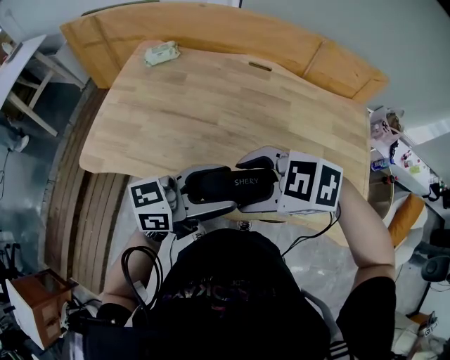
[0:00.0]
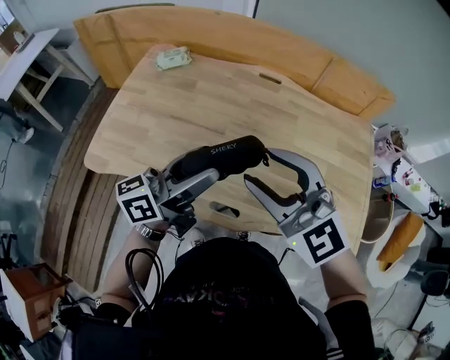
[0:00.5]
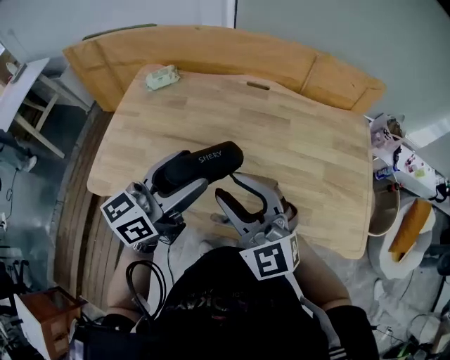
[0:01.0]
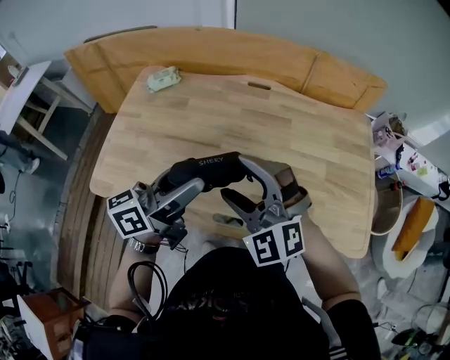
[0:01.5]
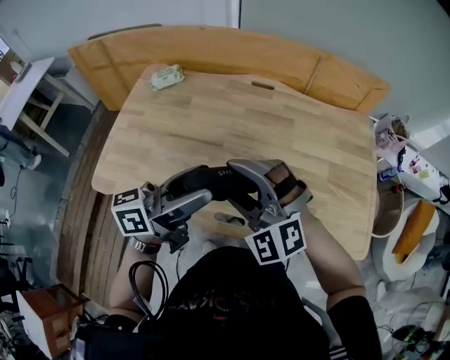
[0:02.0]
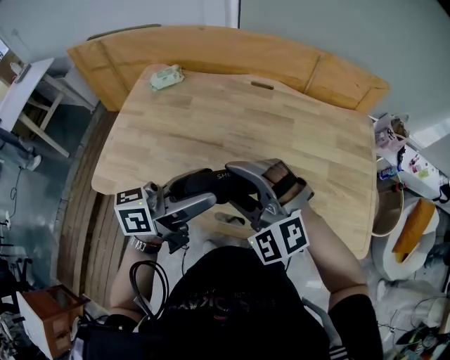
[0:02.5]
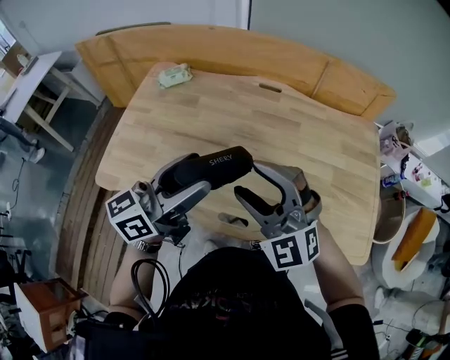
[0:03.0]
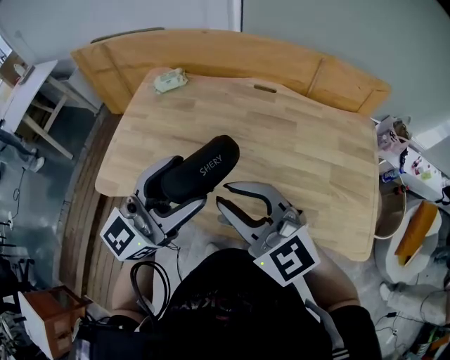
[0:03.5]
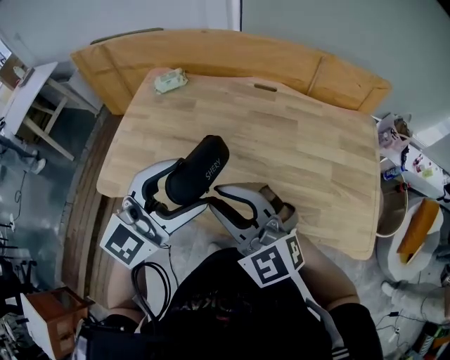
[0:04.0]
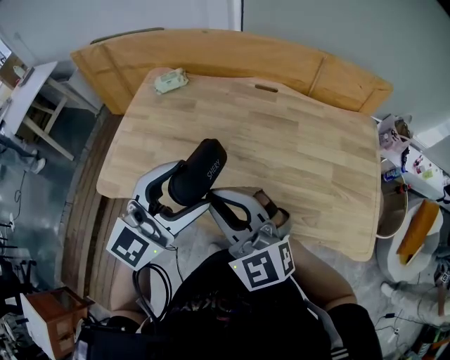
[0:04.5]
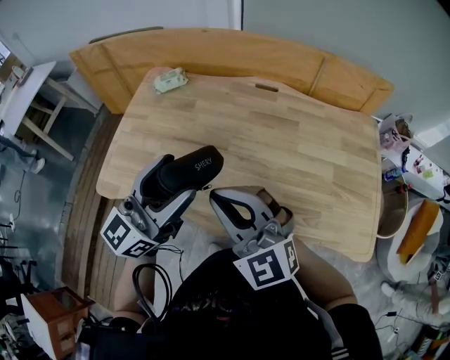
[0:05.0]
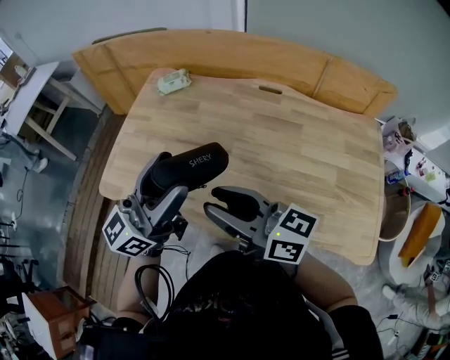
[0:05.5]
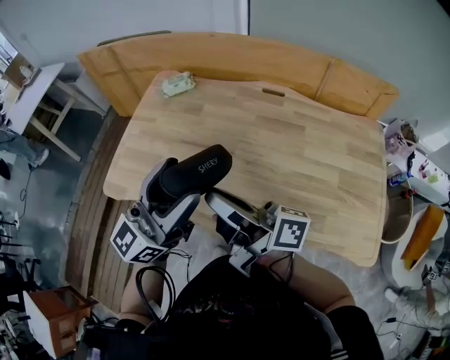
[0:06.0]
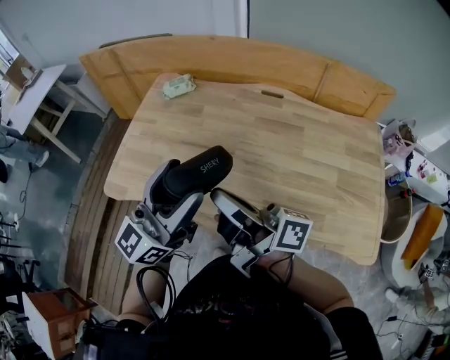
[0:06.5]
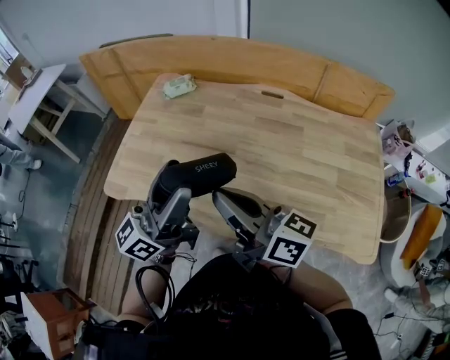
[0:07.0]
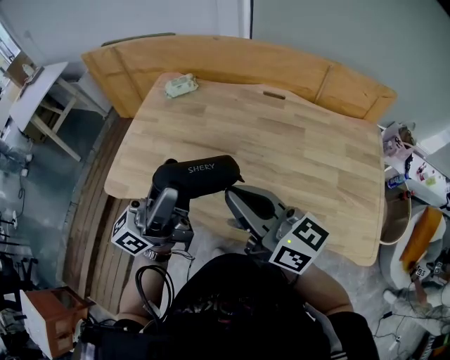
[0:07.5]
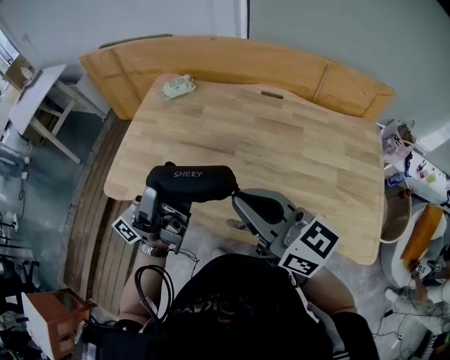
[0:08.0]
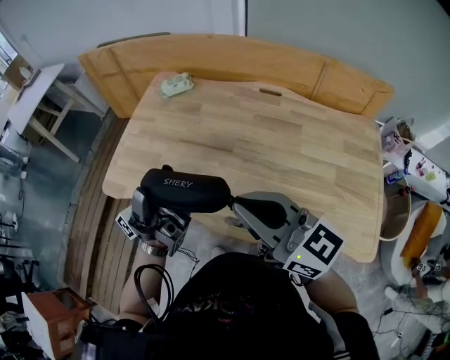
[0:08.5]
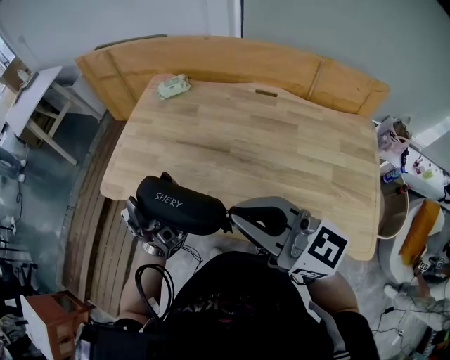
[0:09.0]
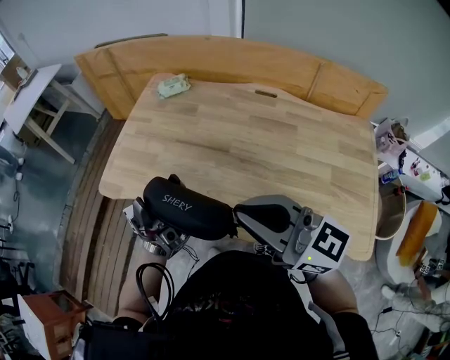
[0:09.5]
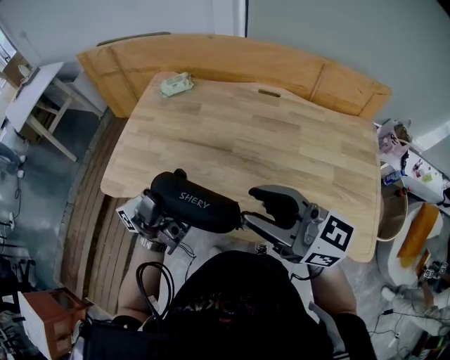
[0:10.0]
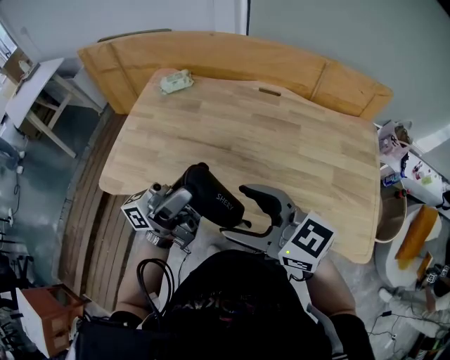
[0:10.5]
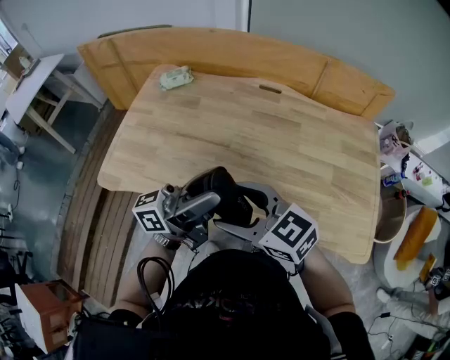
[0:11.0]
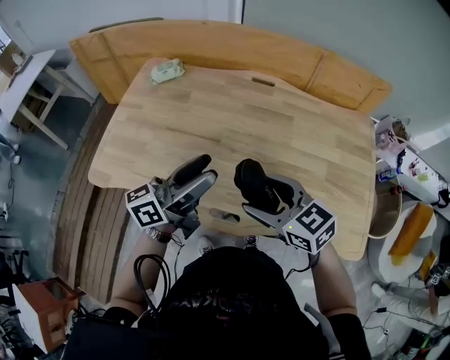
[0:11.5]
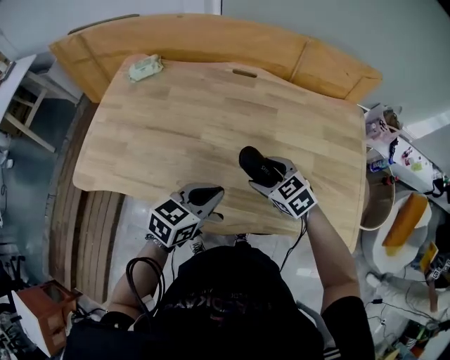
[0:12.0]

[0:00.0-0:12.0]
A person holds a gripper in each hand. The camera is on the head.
0:00.0 to 0:02.0: The right gripper travels upward and back again, some 10 cm each way, and changes its angle by about 60 degrees; the left gripper shifts by roughly 10 cm.
0:02.0 to 0:04.0: The right gripper moves roughly 5 cm, swivels approximately 30 degrees, and closes up, while the left gripper moves some 5 cm, and rolls clockwise, seen from behind, by some 60 degrees.
0:04.0 to 0:06.0: The left gripper turns by approximately 40 degrees; the right gripper twists roughly 100 degrees clockwise, seen from behind.
0:06.0 to 0:08.0: The left gripper is displaced to the left by roughly 5 cm, and rotates around the line of its fingers by roughly 50 degrees, counterclockwise from behind. Meanwhile the right gripper shifts by roughly 5 cm, and rotates around the line of its fingers by some 50 degrees, counterclockwise from behind.
0:08.0 to 0:10.0: The left gripper rotates about 20 degrees.
0:10.0 to 0:12.0: The right gripper moves downward, to the right and forward, about 30 cm, tips its fingers downward by some 50 degrees, and opens its fingers. The left gripper travels downward and to the right by roughly 30 cm, tilts its fingers some 80 degrees downward, and closes up.

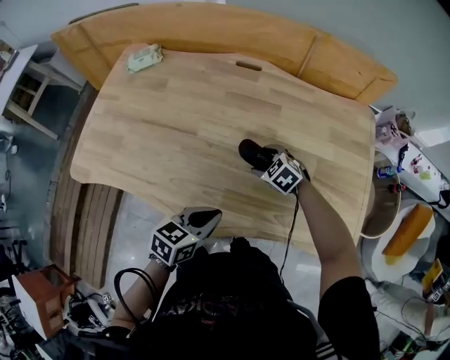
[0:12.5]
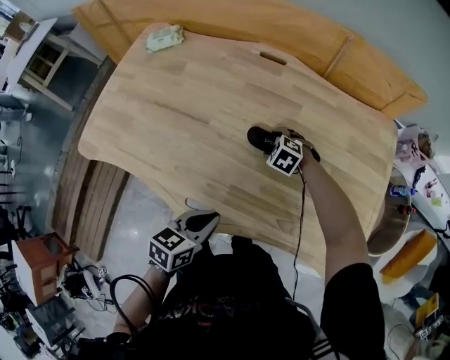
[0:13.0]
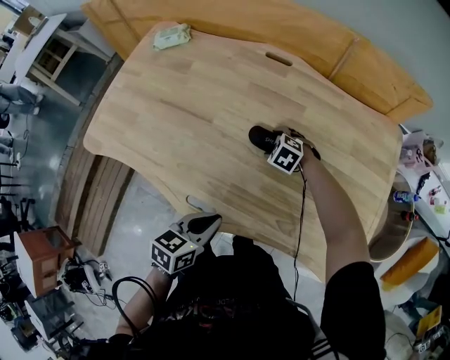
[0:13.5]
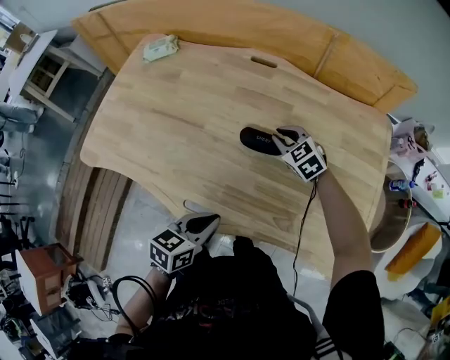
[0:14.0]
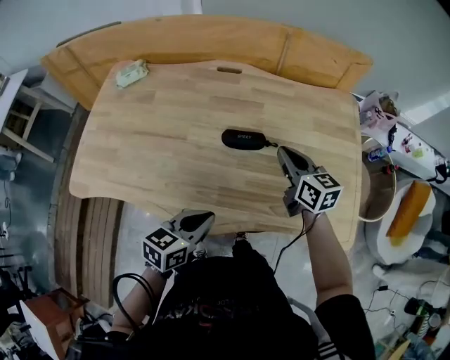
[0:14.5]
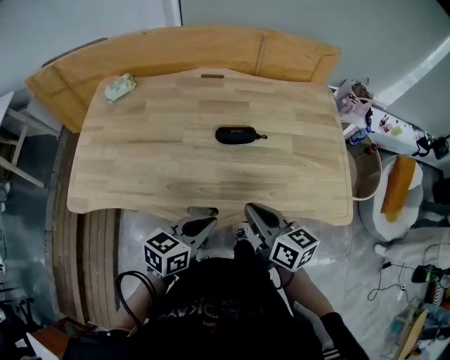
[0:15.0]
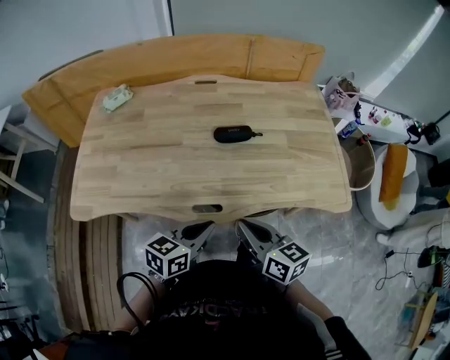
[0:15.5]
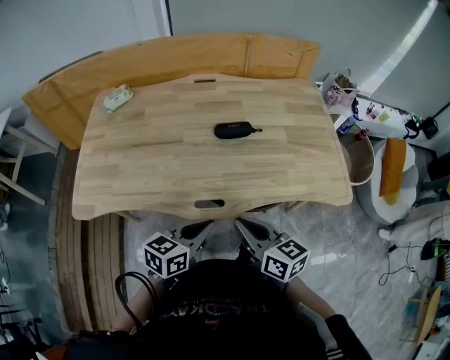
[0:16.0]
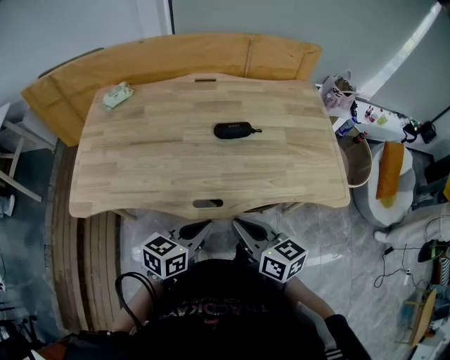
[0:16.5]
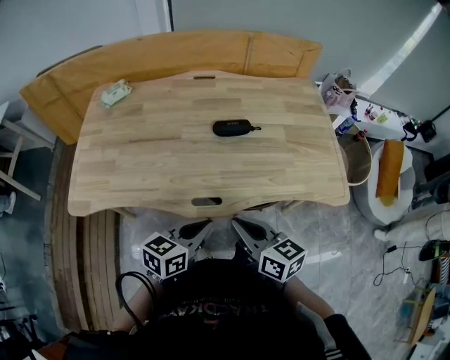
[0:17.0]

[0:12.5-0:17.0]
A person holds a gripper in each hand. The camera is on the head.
0:12.5 to 0:14.5: The right gripper moves upward and to the right, about 20 cm, points its fingers some 40 degrees further upward, and closes up.
0:14.5 to 0:17.0: The right gripper heads backward, covering approximately 30 cm; the left gripper travels backward by some 10 cm.

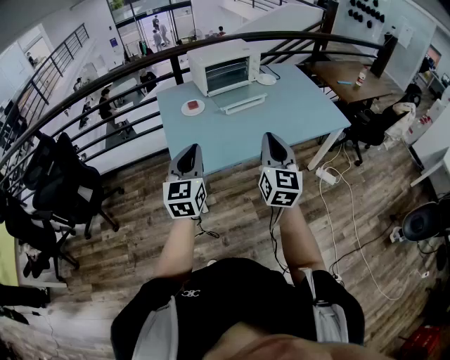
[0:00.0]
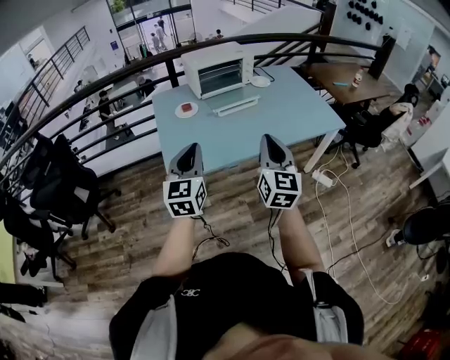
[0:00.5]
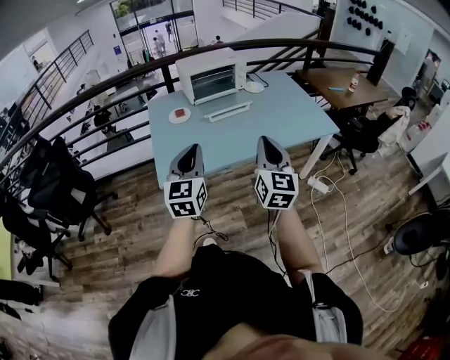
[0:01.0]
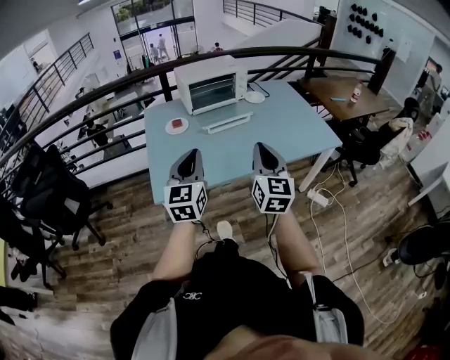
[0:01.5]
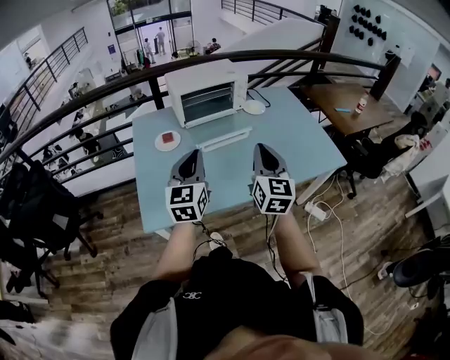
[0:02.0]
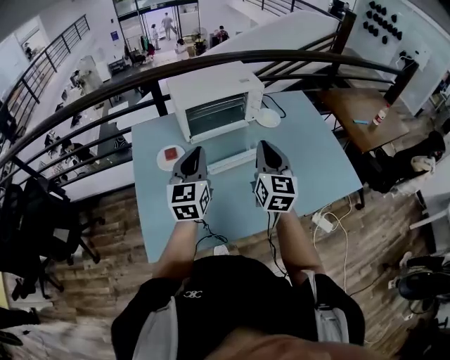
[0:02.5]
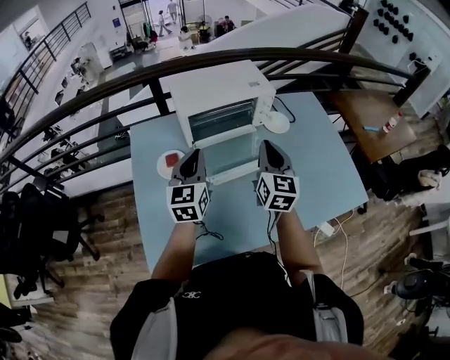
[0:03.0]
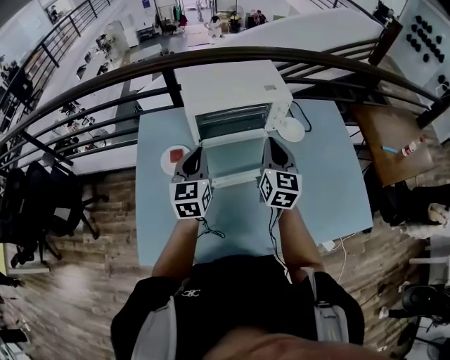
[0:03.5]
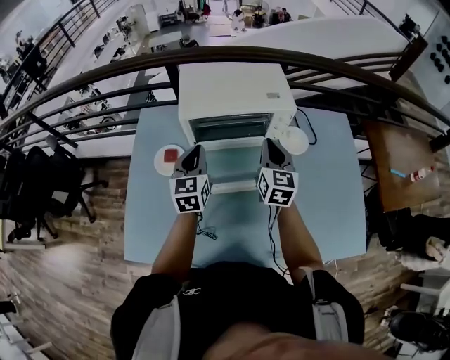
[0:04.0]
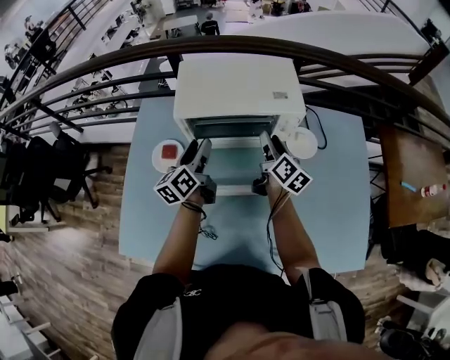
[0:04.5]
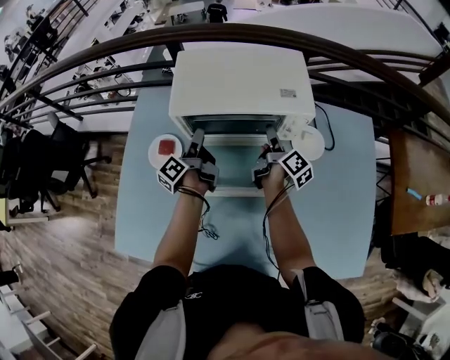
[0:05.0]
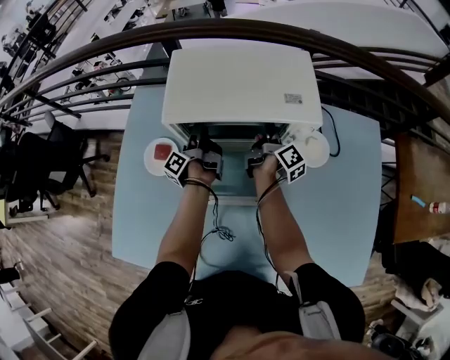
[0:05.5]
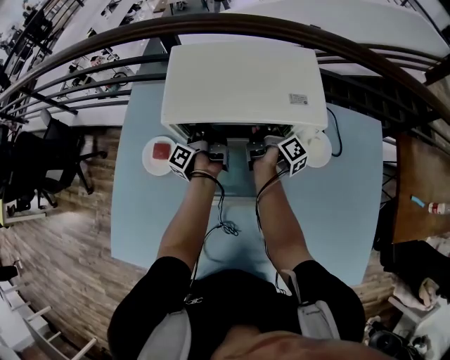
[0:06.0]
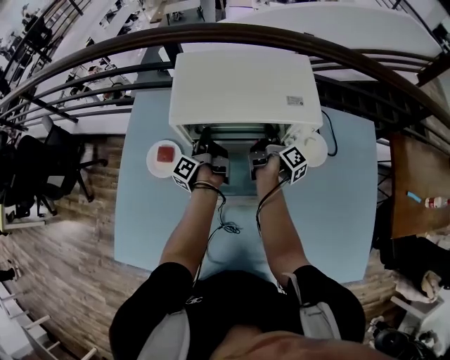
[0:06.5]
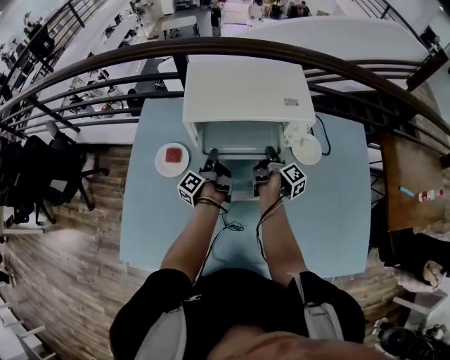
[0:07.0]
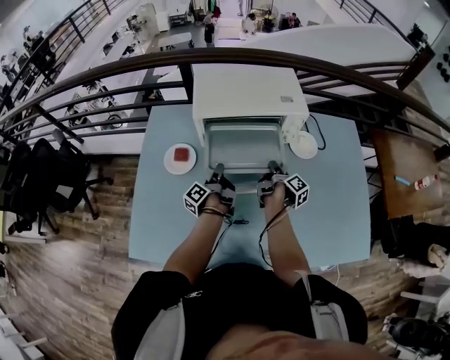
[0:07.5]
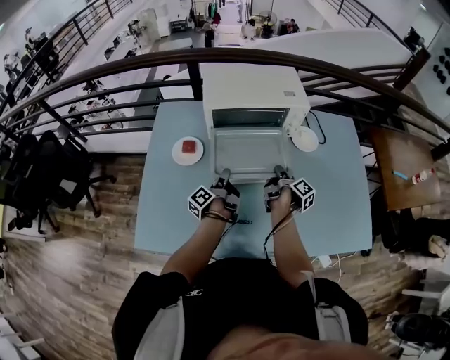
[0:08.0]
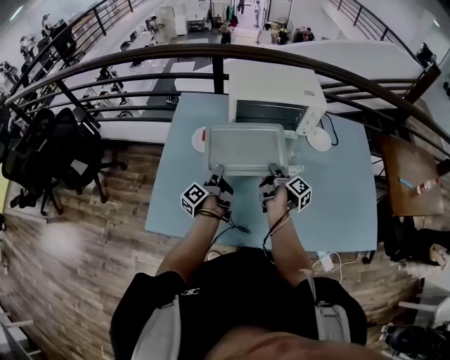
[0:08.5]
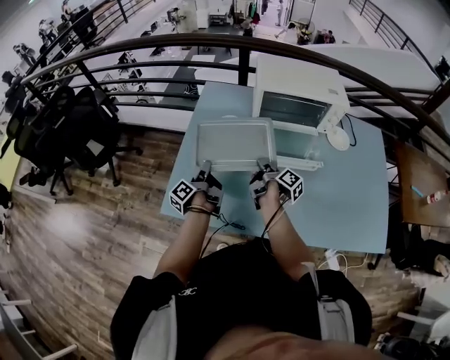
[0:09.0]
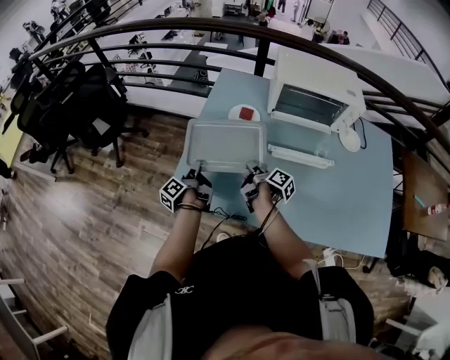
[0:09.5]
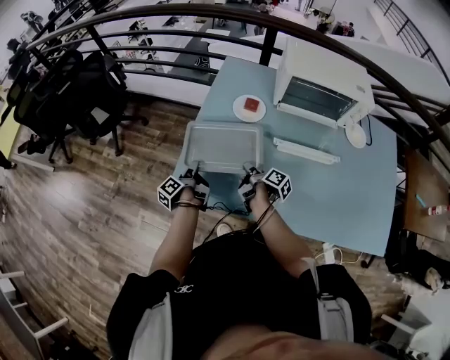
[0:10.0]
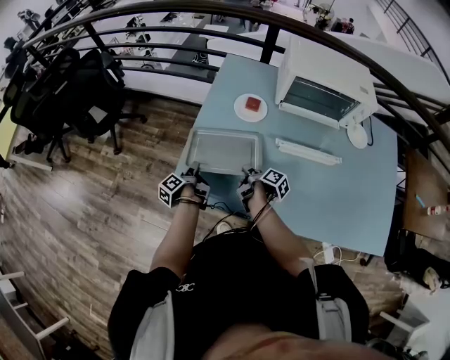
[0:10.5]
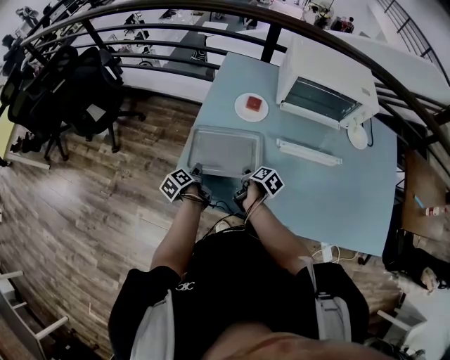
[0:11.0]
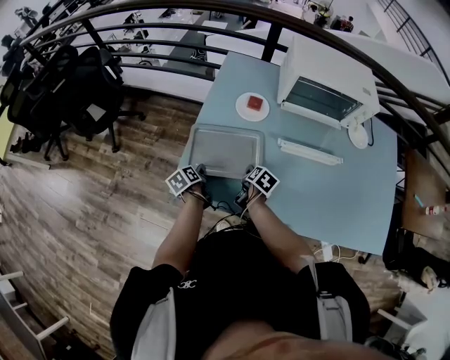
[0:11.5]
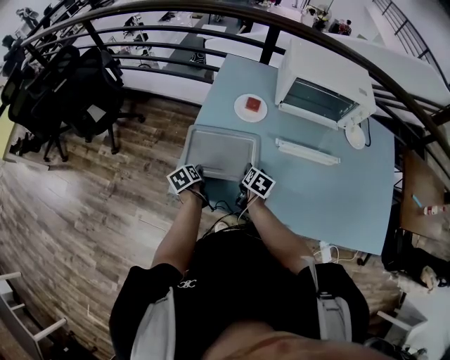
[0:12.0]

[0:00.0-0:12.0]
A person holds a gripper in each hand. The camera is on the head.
0:00.0 to 0:02.0: Both grippers move forward and to the right, approximately 25 cm.
0:02.0 to 0:04.0: Both grippers move forward, some 40 cm. The left gripper turns by roughly 30 degrees, while the right gripper changes its angle by about 20 degrees.
0:04.0 to 0:06.0: Both grippers move forward and downward, roughly 25 cm. The right gripper rolls clockwise, seen from behind, by some 80 degrees, and opens. The left gripper twists some 90 degrees counterclockwise, seen from behind, and opens and closes again.
0:06.0 to 0:08.0: Both grippers move backward, roughly 30 cm. The left gripper swivels roughly 20 degrees.
0:08.0 to 0:10.0: The right gripper shifts by approximately 35 cm, and swivels some 40 degrees; the left gripper moves some 40 cm, and rotates approximately 20 degrees.
0:10.0 to 0:12.0: The right gripper changes its angle by approximately 60 degrees, and opens; the left gripper travels downward by approximately 5 cm, tips its fingers downward by about 40 degrees, and opens up.
